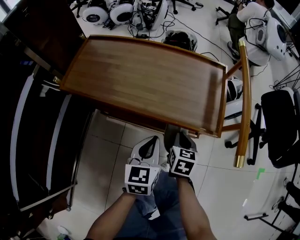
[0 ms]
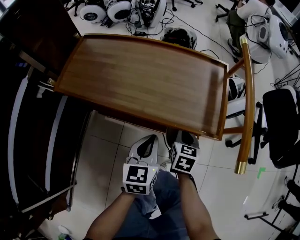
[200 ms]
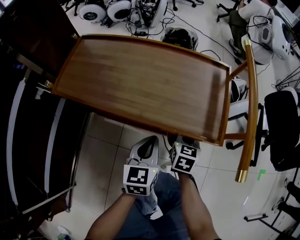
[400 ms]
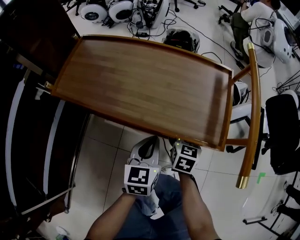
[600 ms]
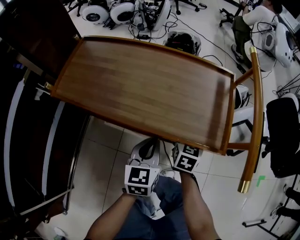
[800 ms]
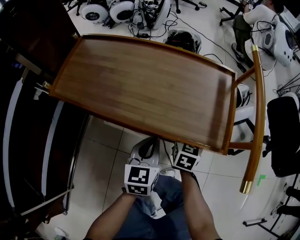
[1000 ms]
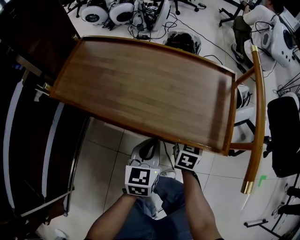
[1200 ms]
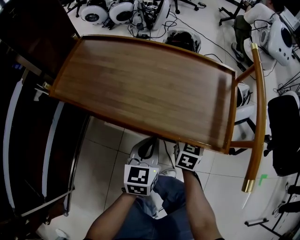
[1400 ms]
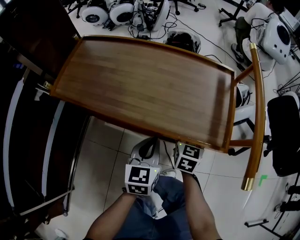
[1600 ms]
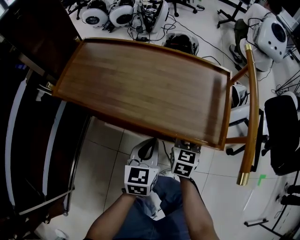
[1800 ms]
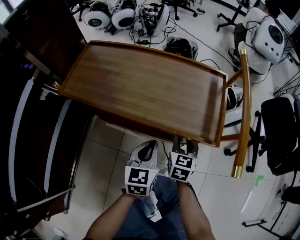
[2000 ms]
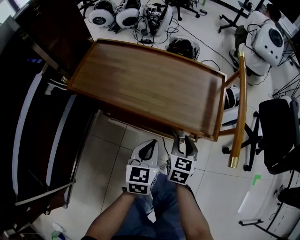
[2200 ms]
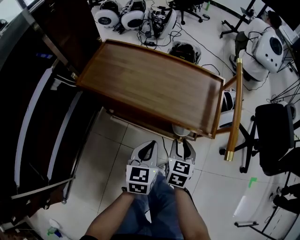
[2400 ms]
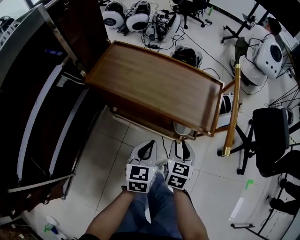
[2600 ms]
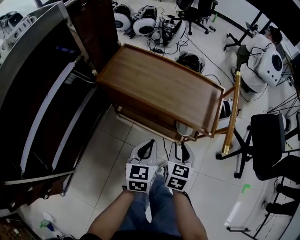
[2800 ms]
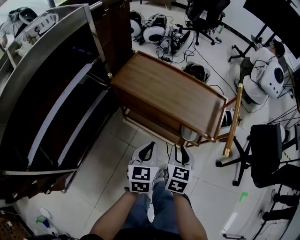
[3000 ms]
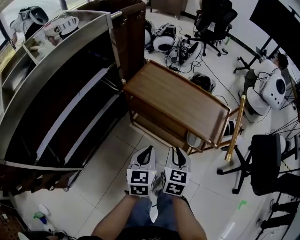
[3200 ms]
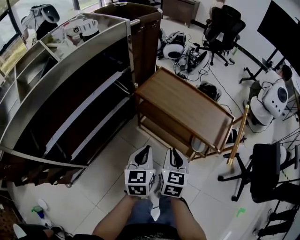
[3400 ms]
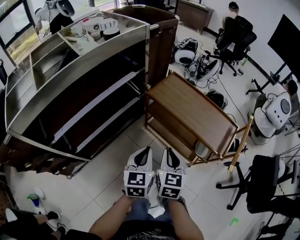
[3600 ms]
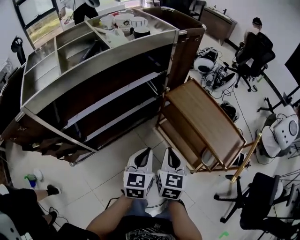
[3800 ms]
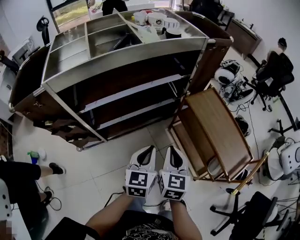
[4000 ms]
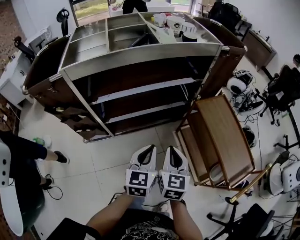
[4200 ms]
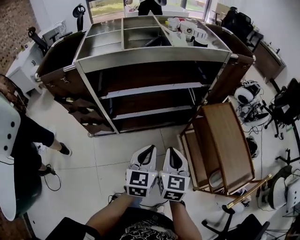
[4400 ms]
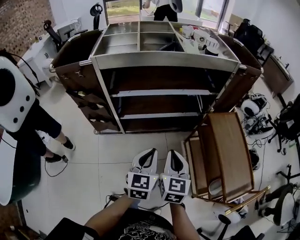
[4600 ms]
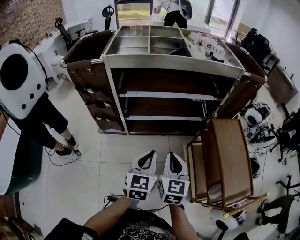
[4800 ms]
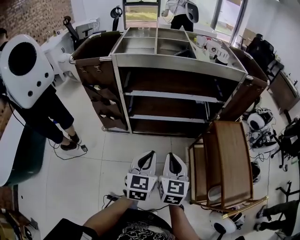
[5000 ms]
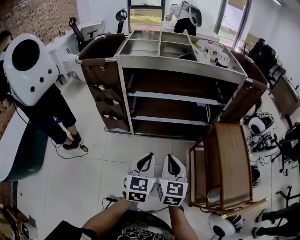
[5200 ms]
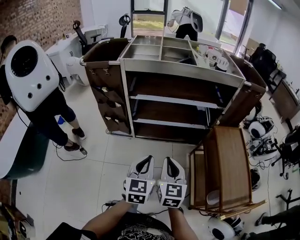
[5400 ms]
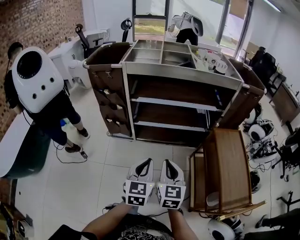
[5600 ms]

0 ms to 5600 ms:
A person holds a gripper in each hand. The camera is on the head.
0 ms to 1400 ms: The left gripper heads downward, covering roughly 5 cm. Meanwhile the right gripper moves forward, roughly 10 cm.
1400 ms to 2800 ms: Both grippers travel together upward and backward, some 25 cm.
2800 ms to 4200 ms: The left gripper shifts by about 35 cm, and turns by approximately 50 degrees. Meanwhile the right gripper shifts by roughly 40 cm, swivels roughly 60 degrees, and closes its fingers.
4200 ms to 5600 ms: The left gripper moves some 20 cm, and swivels approximately 20 degrees. Meanwhile the right gripper ends up approximately 15 cm from where it was, and changes its angle by roughly 30 degrees.

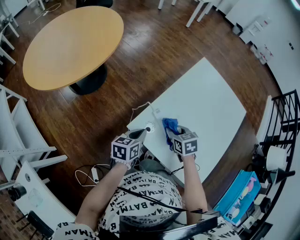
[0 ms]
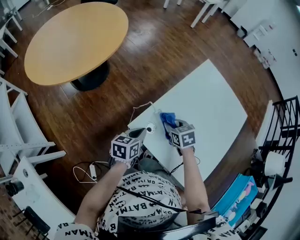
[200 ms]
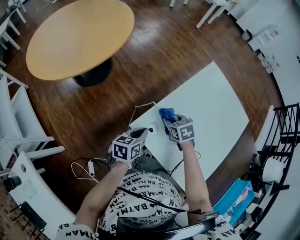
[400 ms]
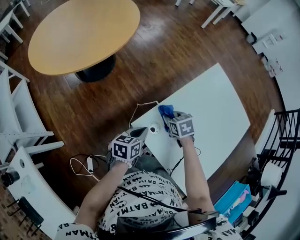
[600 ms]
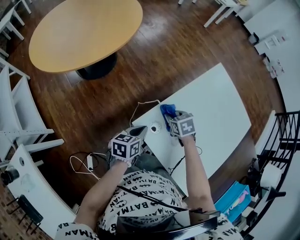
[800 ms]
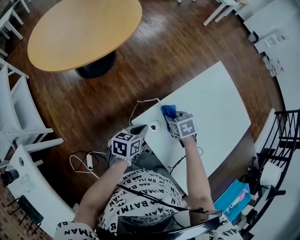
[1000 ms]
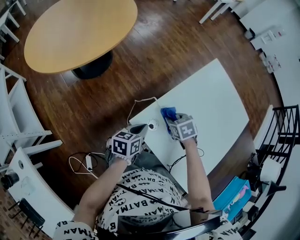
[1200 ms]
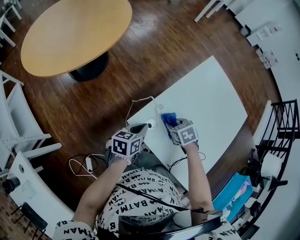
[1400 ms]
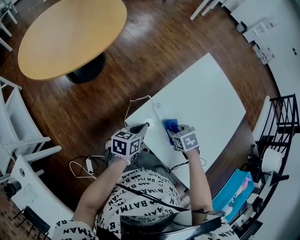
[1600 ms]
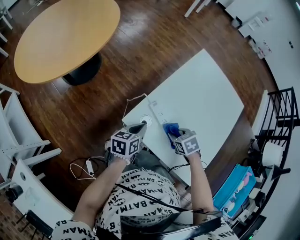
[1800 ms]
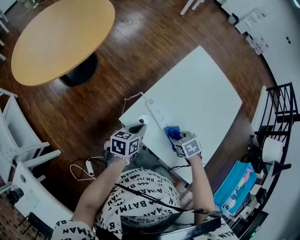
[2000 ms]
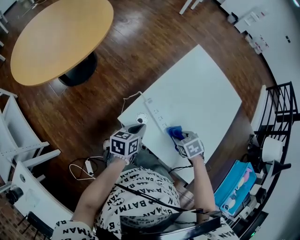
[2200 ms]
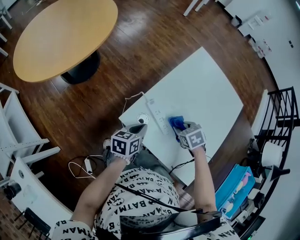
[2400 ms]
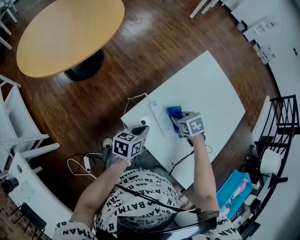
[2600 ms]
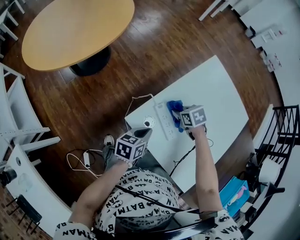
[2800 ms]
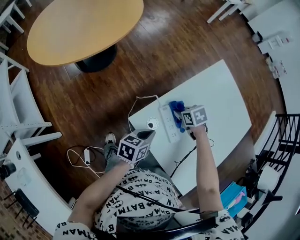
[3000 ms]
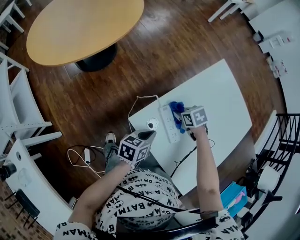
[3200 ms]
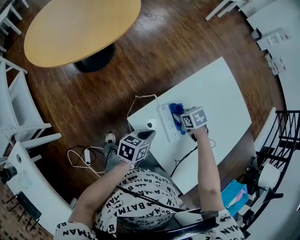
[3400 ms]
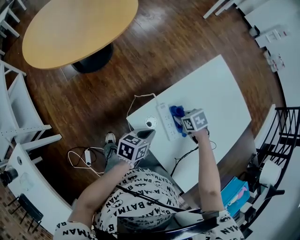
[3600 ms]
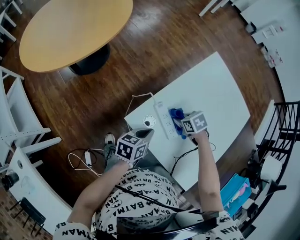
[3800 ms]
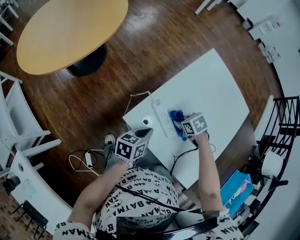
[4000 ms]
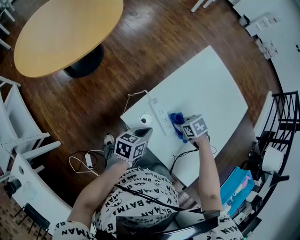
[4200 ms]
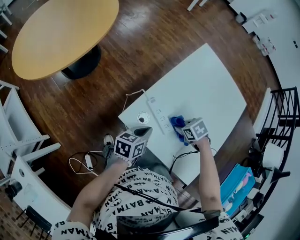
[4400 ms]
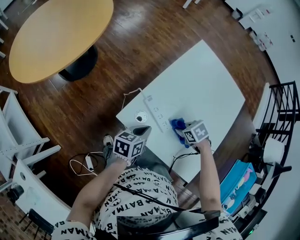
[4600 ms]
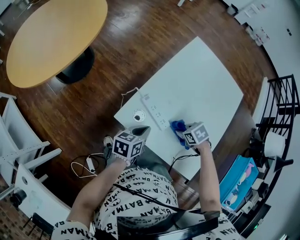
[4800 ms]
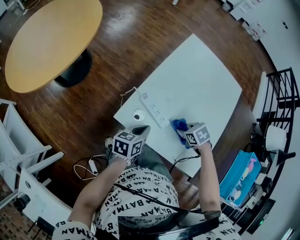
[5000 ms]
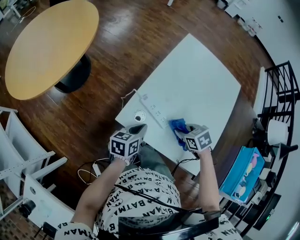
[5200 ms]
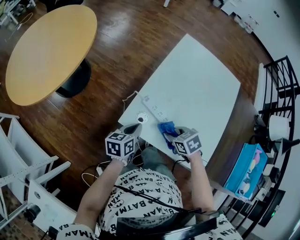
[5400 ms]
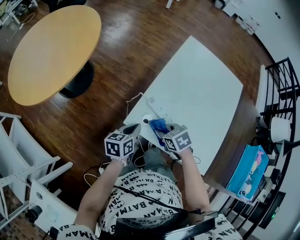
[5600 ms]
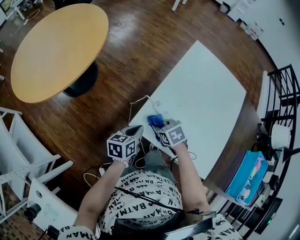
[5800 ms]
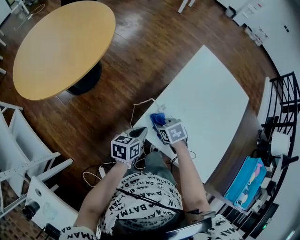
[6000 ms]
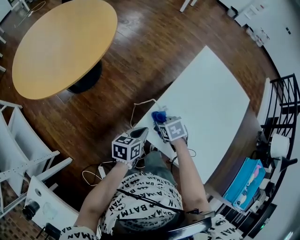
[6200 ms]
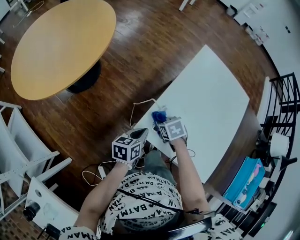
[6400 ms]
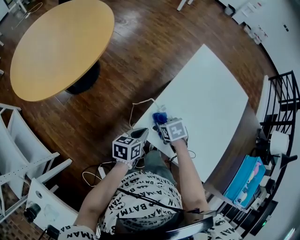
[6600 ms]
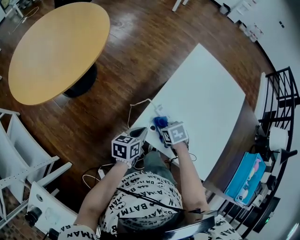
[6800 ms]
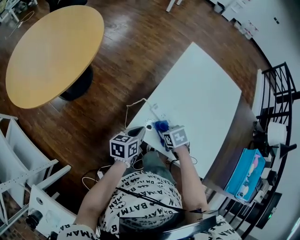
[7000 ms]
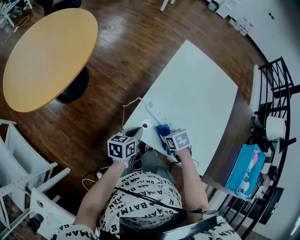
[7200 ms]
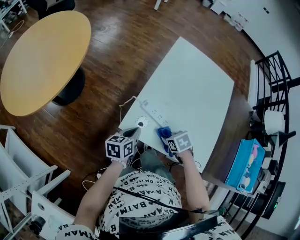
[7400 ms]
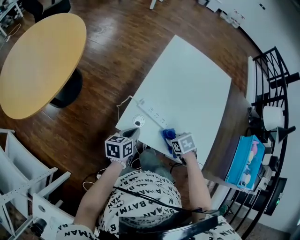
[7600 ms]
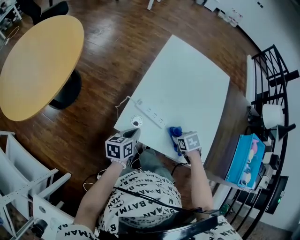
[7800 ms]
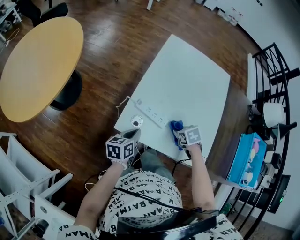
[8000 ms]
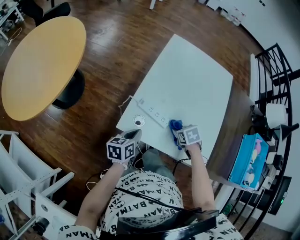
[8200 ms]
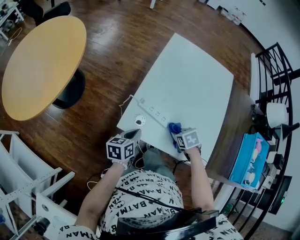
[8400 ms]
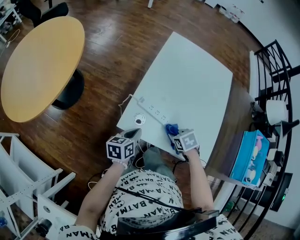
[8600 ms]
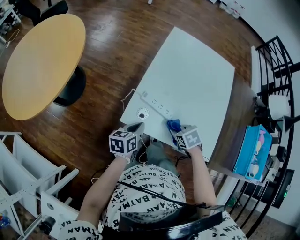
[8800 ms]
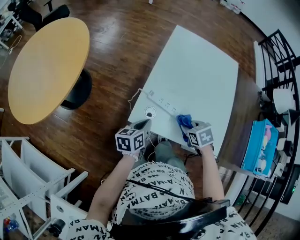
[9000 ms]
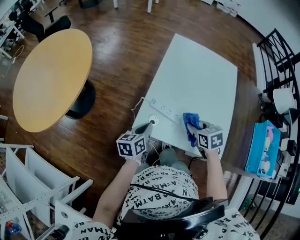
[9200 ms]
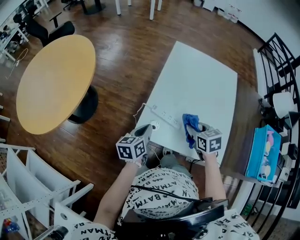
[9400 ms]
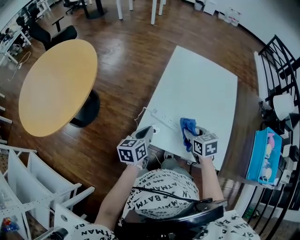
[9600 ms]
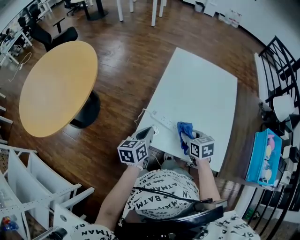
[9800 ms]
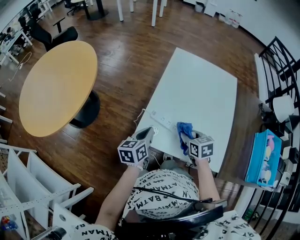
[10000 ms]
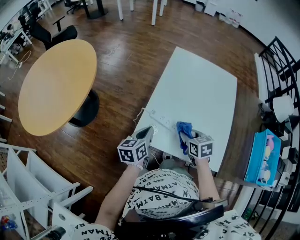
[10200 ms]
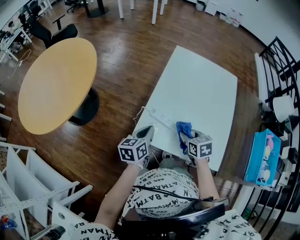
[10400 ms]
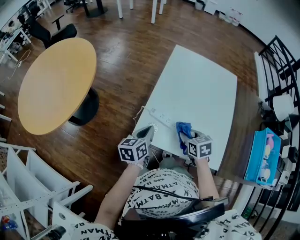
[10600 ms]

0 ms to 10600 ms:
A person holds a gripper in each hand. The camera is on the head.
0 ms to 1600 ms: The right gripper goes forward and returns, some 10 cm each way.
1600 ms to 3000 ms: The right gripper moves approximately 10 cm.
3000 ms to 4600 ms: The right gripper ends up approximately 15 cm from where it was.
4600 ms to 6000 ms: The right gripper ends up about 20 cm from where it was. Meanwhile the left gripper ends up approximately 10 cm from where it was.
6000 ms to 7600 ms: The left gripper ends up some 5 cm from where it was, while the right gripper shifts by some 20 cm.
7600 ms to 9000 ms: The right gripper is displaced upward by roughly 5 cm.
9000 ms to 10600 ms: The left gripper heads upward, covering roughly 5 cm.

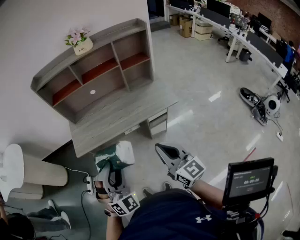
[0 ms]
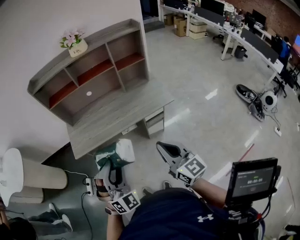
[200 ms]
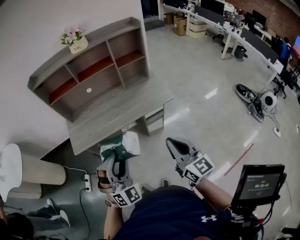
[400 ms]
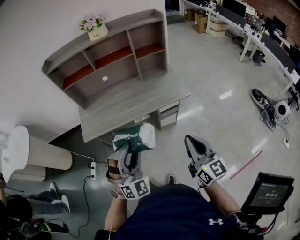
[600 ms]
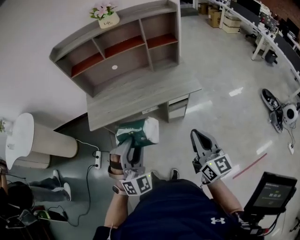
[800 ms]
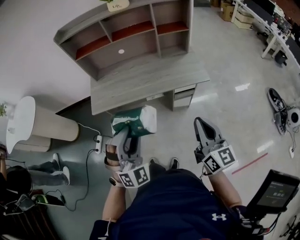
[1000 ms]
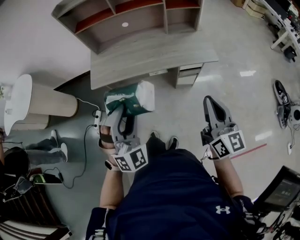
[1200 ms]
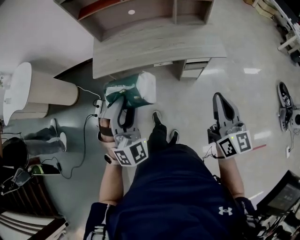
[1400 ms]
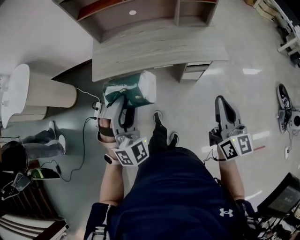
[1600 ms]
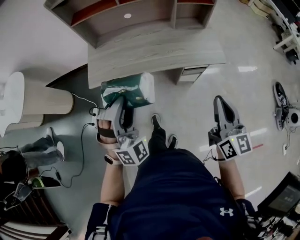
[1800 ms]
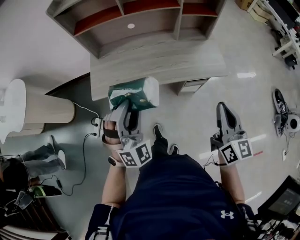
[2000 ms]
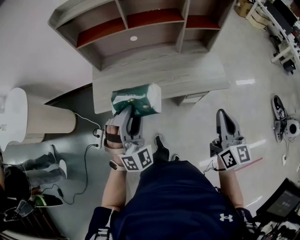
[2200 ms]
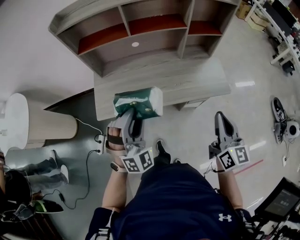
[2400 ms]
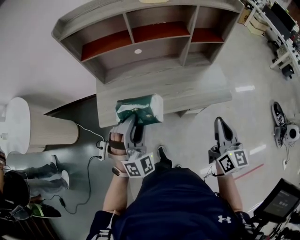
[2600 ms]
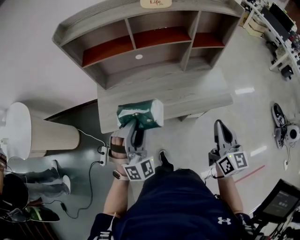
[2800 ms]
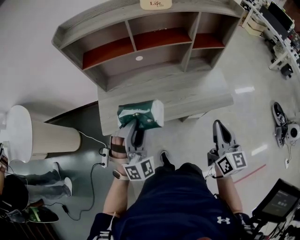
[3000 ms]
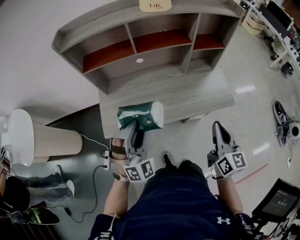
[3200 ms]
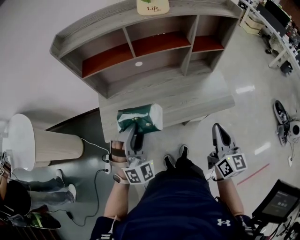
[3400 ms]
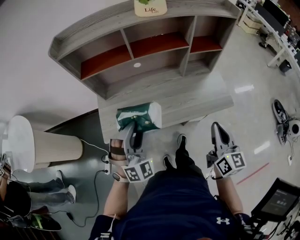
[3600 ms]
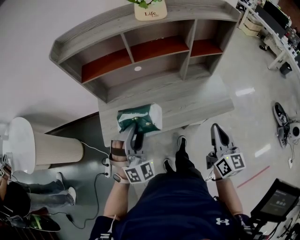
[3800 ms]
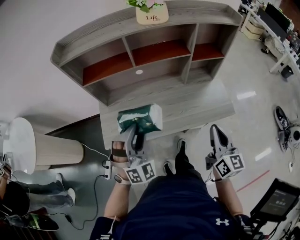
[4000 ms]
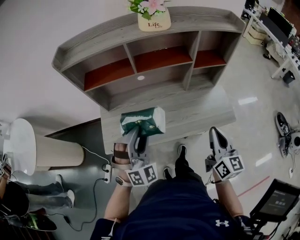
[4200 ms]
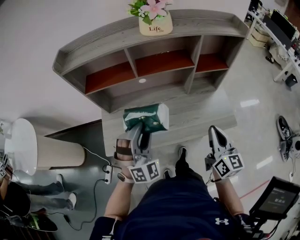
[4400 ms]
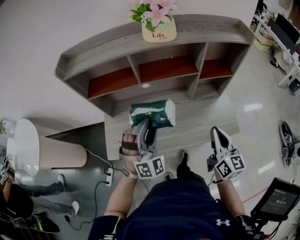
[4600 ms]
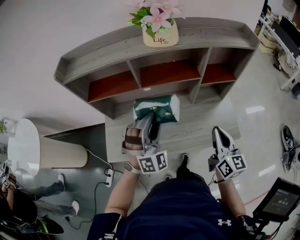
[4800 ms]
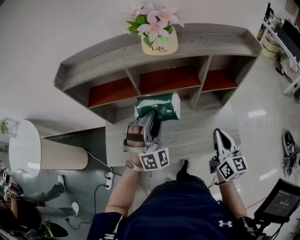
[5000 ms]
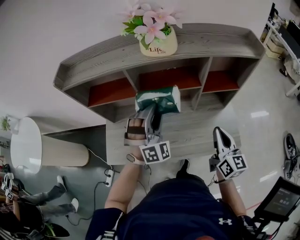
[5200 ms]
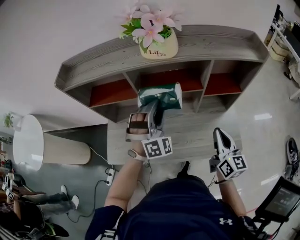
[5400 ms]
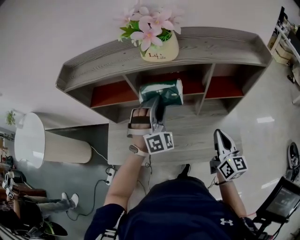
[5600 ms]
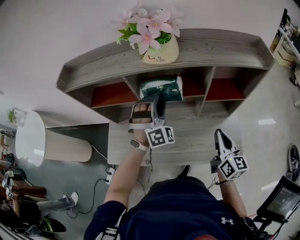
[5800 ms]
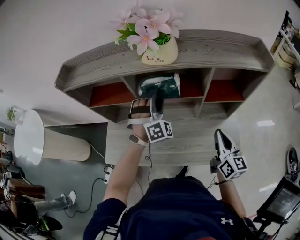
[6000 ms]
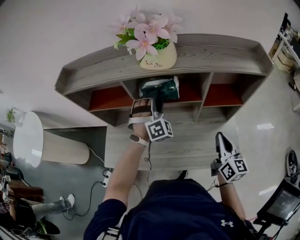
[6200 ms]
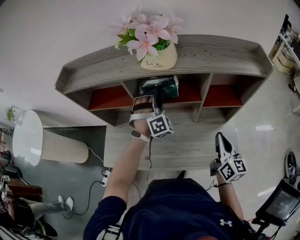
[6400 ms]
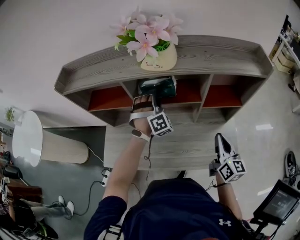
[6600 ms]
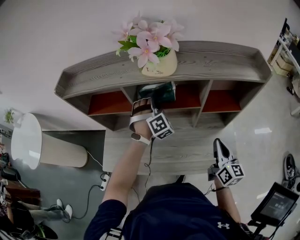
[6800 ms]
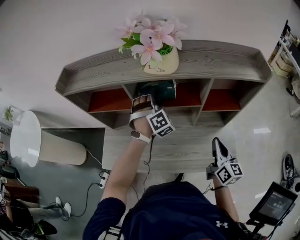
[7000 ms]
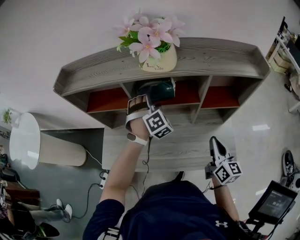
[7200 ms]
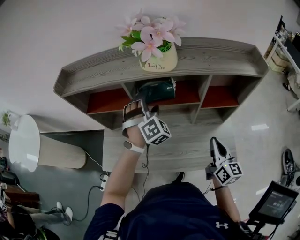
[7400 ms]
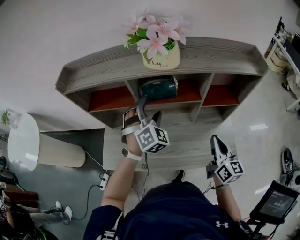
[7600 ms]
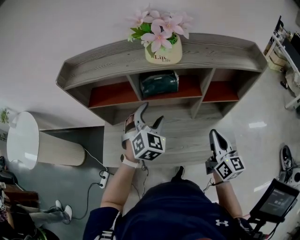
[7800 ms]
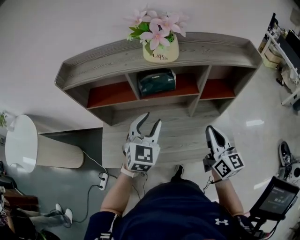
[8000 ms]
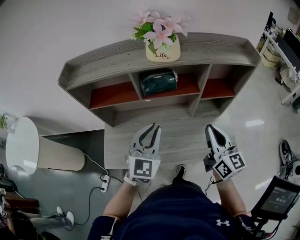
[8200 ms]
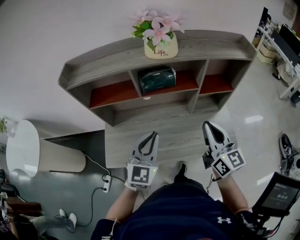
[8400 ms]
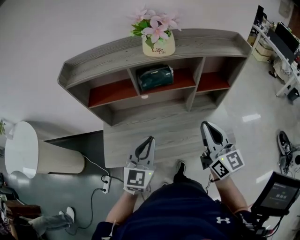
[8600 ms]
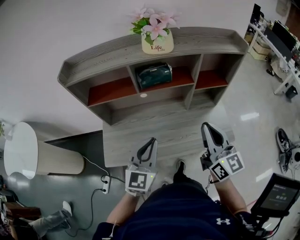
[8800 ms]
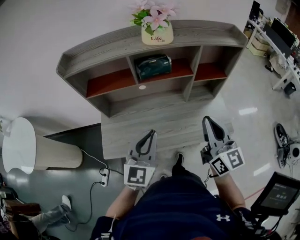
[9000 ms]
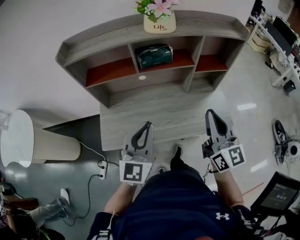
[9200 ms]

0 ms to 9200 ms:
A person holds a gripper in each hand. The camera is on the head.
0 ms to 1600 ms: The right gripper reaches approximately 5 cm backward, then returns, while the left gripper goes roughly 5 cm to the left.
1600 ms to 3000 ms: The grippers both shift forward by roughly 20 cm.
3000 ms to 4600 ms: Both grippers travel together forward, about 15 cm.
4600 ms to 6200 ms: The left gripper moves forward, roughly 25 cm, while the right gripper is displaced forward and to the right by approximately 15 cm.
6200 ms to 7600 ms: The left gripper changes place by approximately 5 cm, changes its angle by approximately 20 degrees, and opens.
7600 ms to 9200 ms: The left gripper travels backward by roughly 25 cm, changes its angle by about 60 degrees, and closes up; the right gripper travels backward, upward and to the left by some 20 cm, and turns by about 20 degrees.
